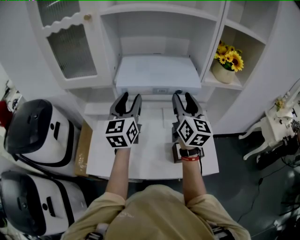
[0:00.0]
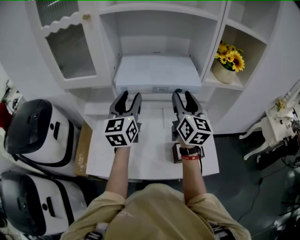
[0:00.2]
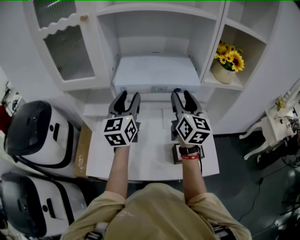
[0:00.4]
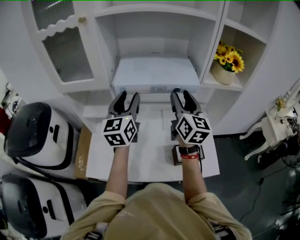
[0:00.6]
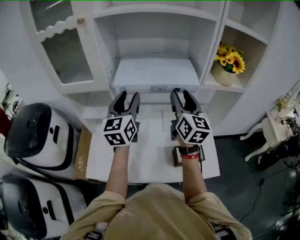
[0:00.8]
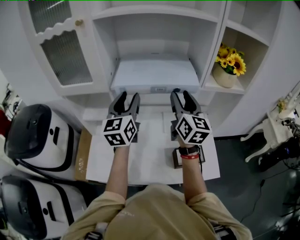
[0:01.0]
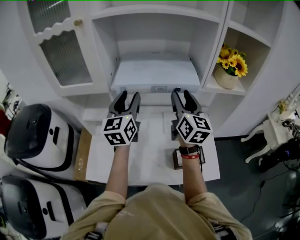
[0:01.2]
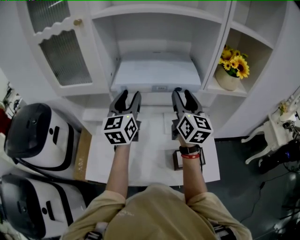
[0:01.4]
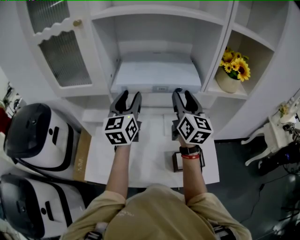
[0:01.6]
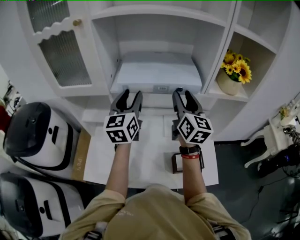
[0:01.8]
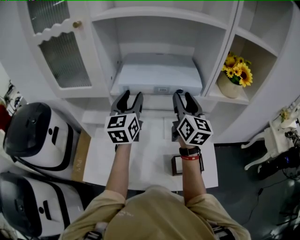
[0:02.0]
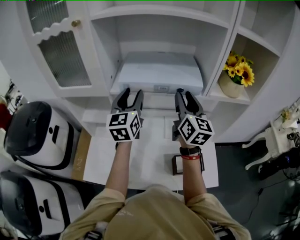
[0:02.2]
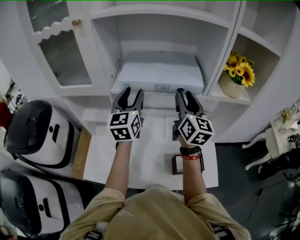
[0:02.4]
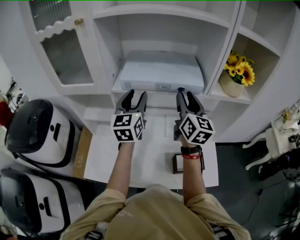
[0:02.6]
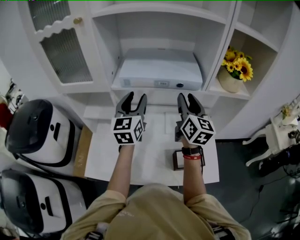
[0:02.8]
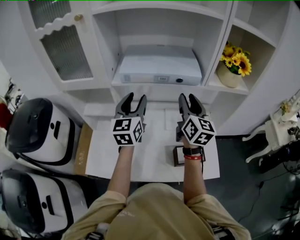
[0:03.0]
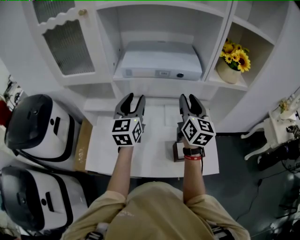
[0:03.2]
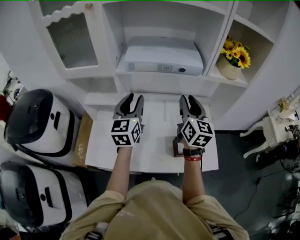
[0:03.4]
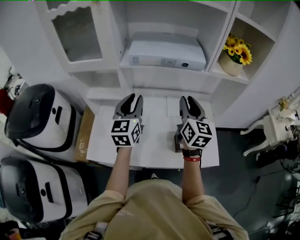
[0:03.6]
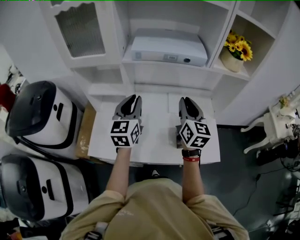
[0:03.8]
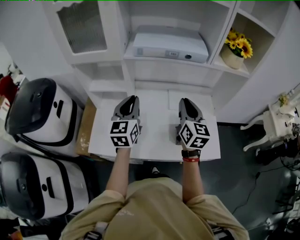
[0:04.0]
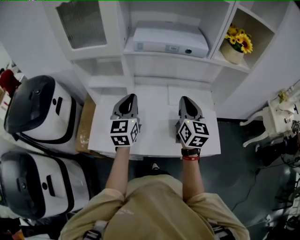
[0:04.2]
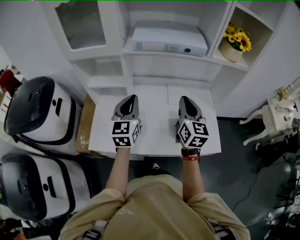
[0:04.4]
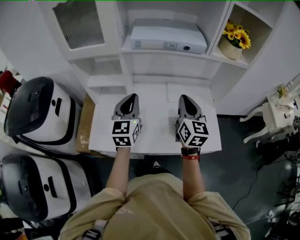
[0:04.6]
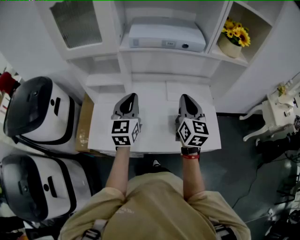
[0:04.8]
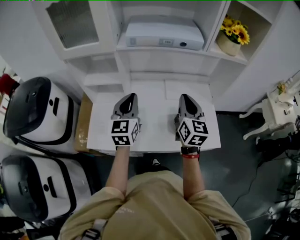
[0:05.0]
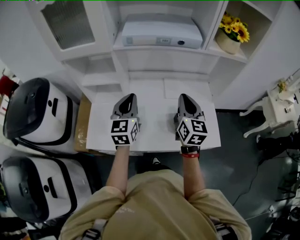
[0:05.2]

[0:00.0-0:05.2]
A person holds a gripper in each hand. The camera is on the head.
0:00.0 to 0:01.8: The grippers both shift forward by roughly 10 cm.
0:01.8 to 0:03.4: Both grippers travel together backward and downward, approximately 10 cm.
0:03.4 to 0:05.2: Both grippers move backward and downward, roughly 10 cm.

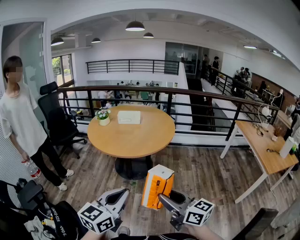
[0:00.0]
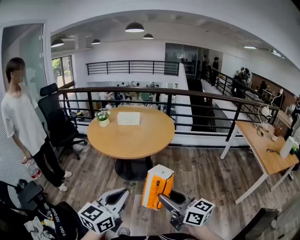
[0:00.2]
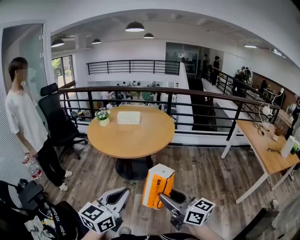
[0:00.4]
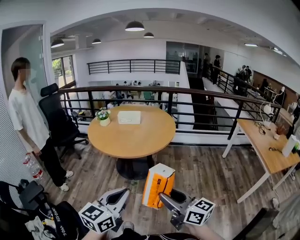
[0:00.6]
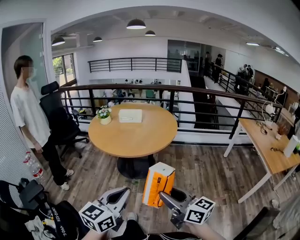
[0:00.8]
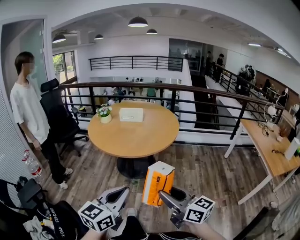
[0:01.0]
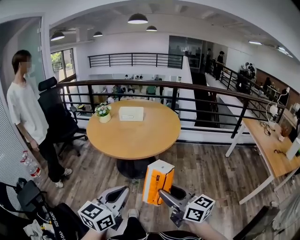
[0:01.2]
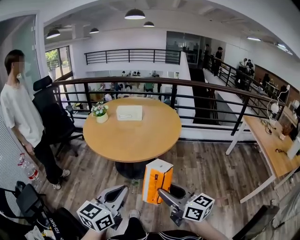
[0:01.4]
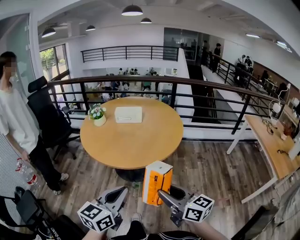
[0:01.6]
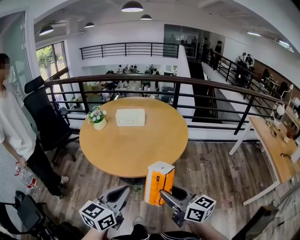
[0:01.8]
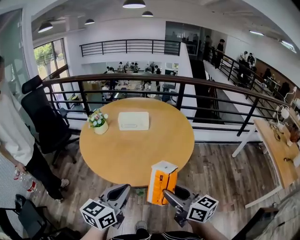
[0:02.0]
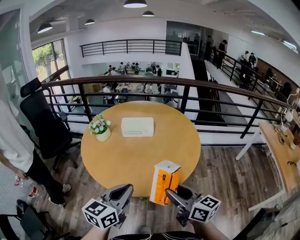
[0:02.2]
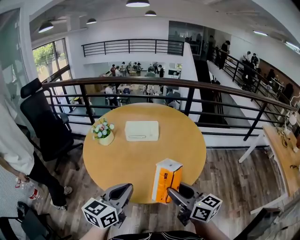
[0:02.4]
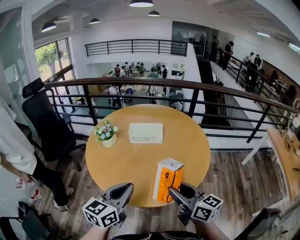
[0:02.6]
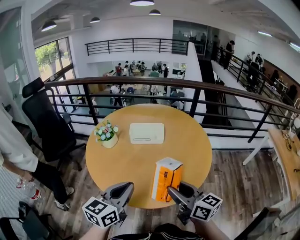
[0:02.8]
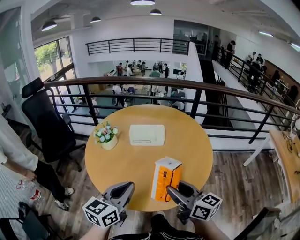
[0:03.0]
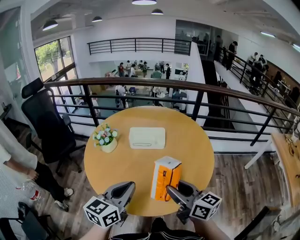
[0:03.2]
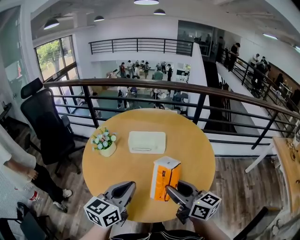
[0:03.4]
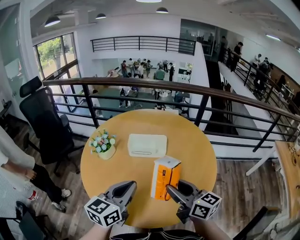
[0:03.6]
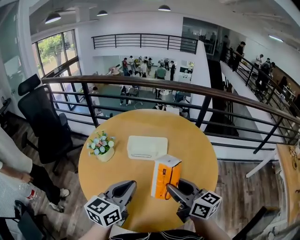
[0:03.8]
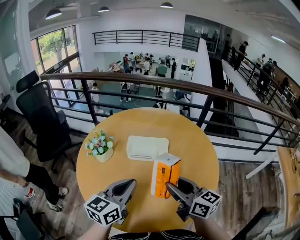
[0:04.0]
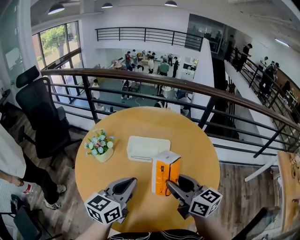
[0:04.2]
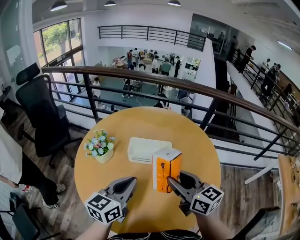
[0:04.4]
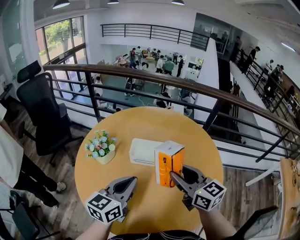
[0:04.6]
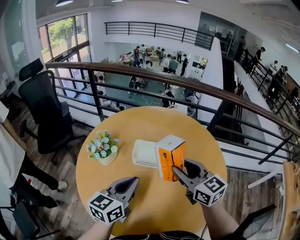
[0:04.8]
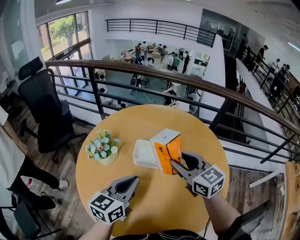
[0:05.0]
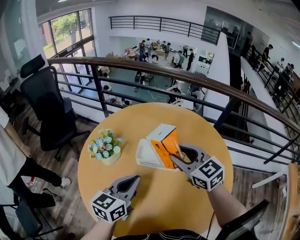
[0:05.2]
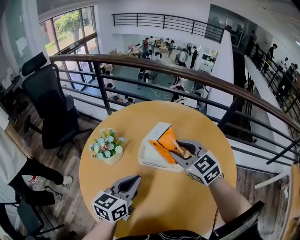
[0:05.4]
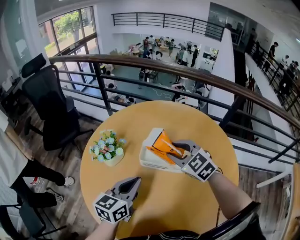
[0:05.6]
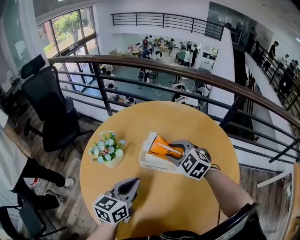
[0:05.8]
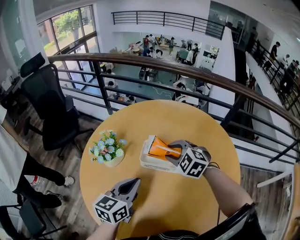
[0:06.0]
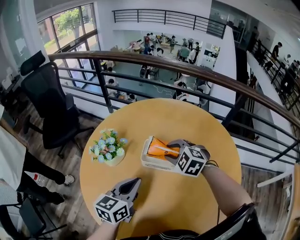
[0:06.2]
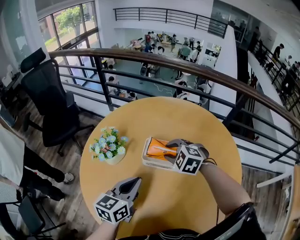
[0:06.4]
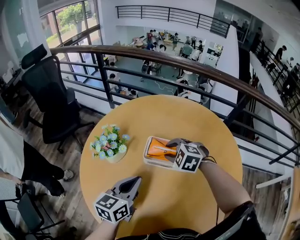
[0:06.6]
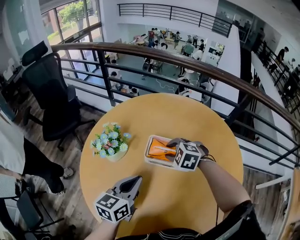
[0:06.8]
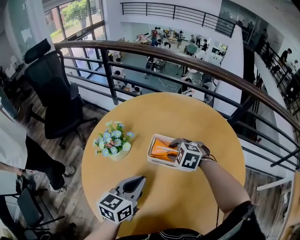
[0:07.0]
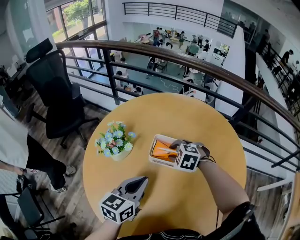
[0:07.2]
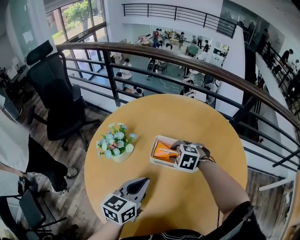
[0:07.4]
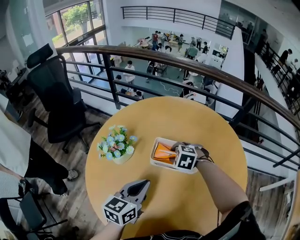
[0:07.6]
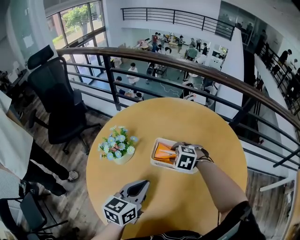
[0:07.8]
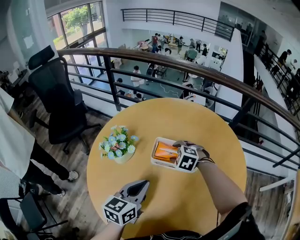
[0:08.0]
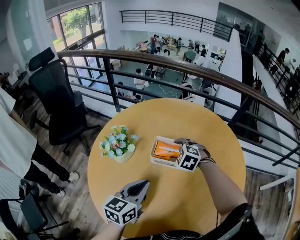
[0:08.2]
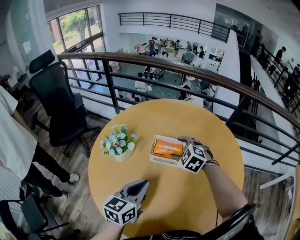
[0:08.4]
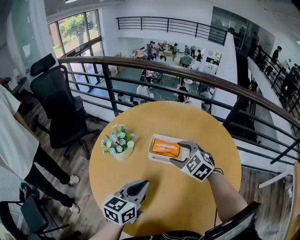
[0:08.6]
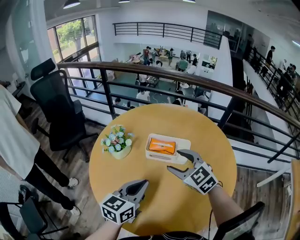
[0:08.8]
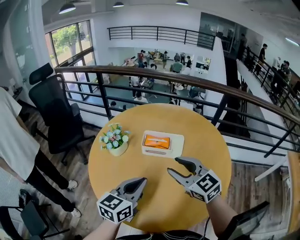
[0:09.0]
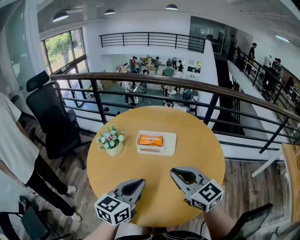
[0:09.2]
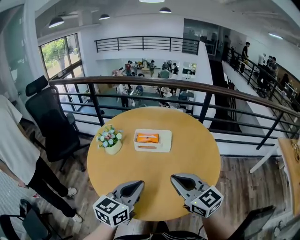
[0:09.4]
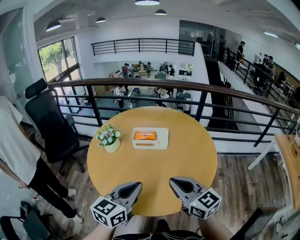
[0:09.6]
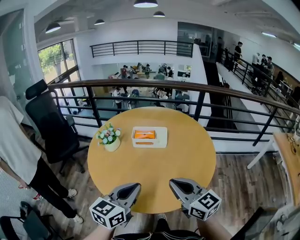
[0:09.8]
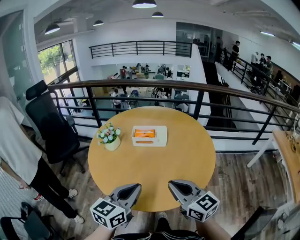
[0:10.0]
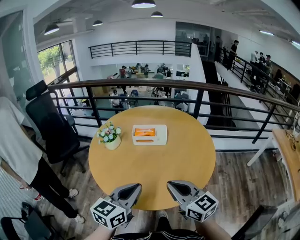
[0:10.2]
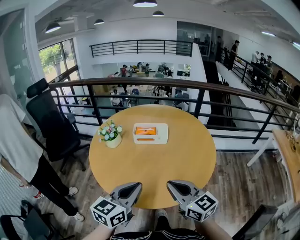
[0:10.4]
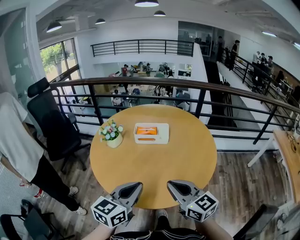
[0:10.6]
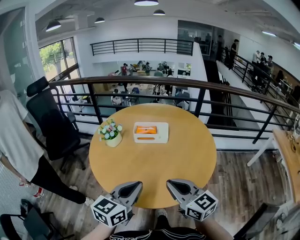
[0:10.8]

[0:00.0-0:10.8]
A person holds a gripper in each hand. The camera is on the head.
0:00.0 to 0:01.6: Both grippers travel together forward, some 15 cm.
0:01.6 to 0:03.0: Both grippers travel together forward, some 25 cm.
0:03.0 to 0:04.6: The grippers both shift forward by approximately 20 cm.
0:04.6 to 0:06.2: The right gripper moves forward and downward, about 20 cm, and tips its fingers downward by about 40 degrees. The left gripper goes about 10 cm downward and forward.
0:06.2 to 0:07.8: The right gripper moves downward, approximately 10 cm.
0:07.8 to 0:09.2: The right gripper goes some 35 cm backward and upward, points its fingers approximately 60 degrees further upward, and closes its fingers. The left gripper shifts roughly 15 cm backward and upward.
0:09.2 to 0:10.8: The grippers both shift backward by roughly 15 cm.

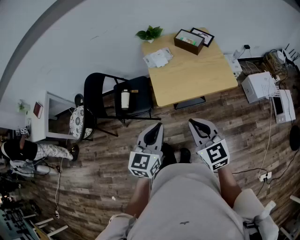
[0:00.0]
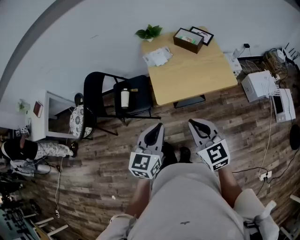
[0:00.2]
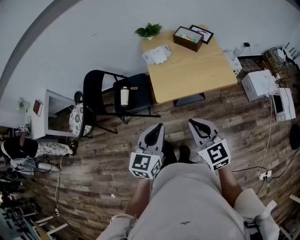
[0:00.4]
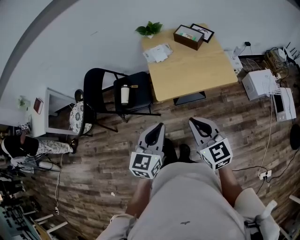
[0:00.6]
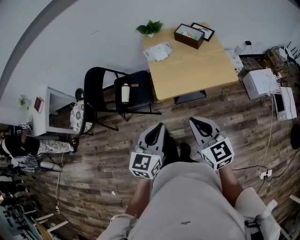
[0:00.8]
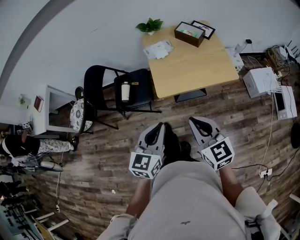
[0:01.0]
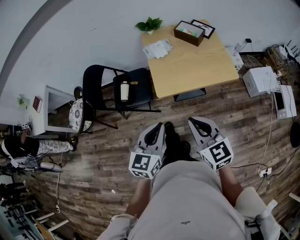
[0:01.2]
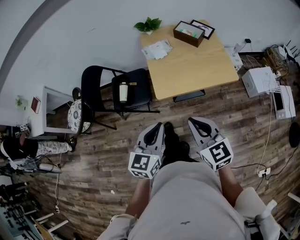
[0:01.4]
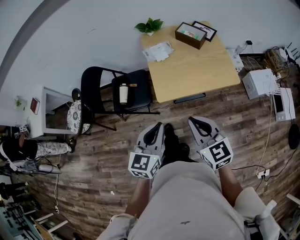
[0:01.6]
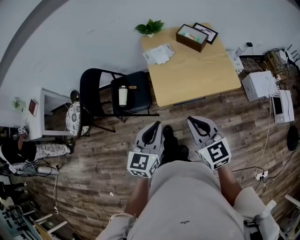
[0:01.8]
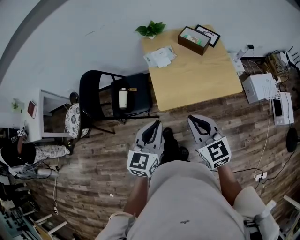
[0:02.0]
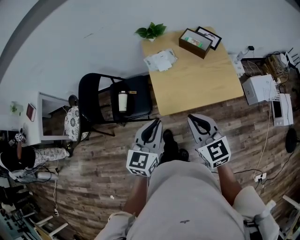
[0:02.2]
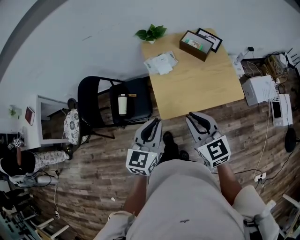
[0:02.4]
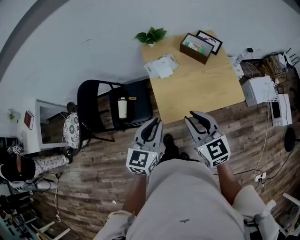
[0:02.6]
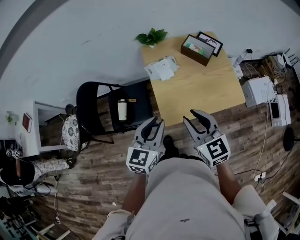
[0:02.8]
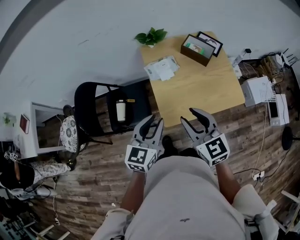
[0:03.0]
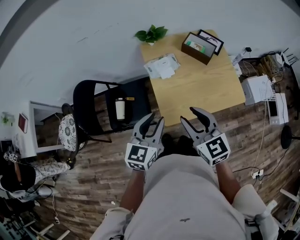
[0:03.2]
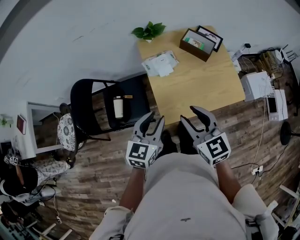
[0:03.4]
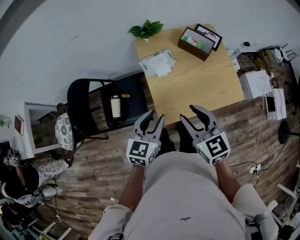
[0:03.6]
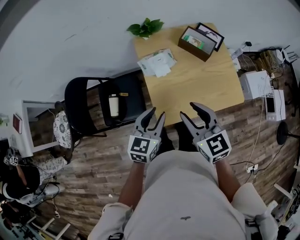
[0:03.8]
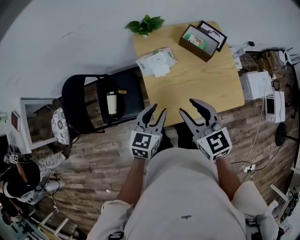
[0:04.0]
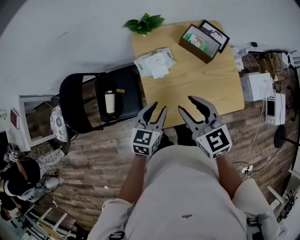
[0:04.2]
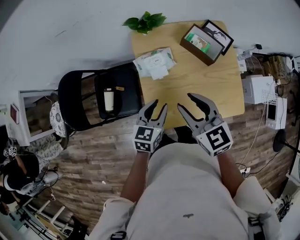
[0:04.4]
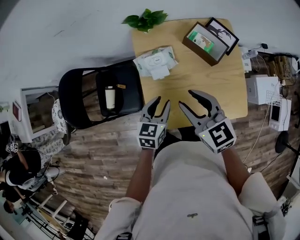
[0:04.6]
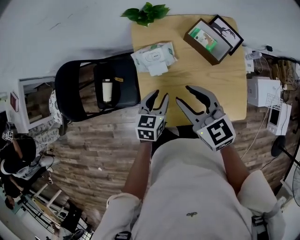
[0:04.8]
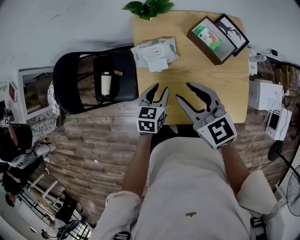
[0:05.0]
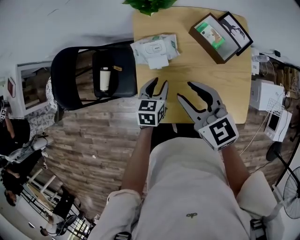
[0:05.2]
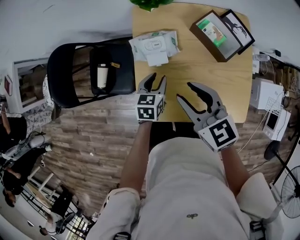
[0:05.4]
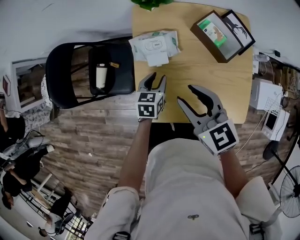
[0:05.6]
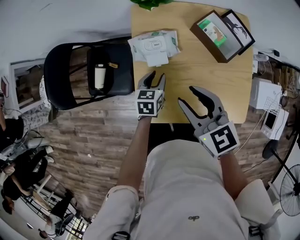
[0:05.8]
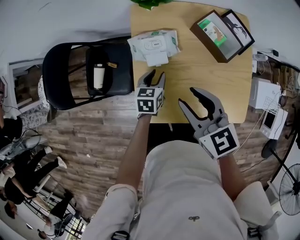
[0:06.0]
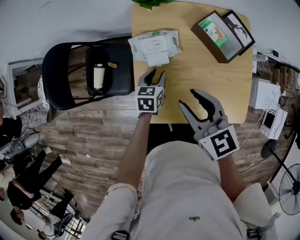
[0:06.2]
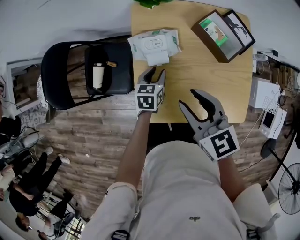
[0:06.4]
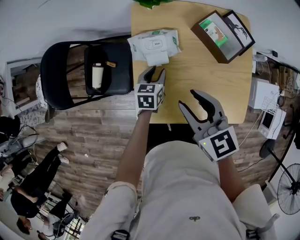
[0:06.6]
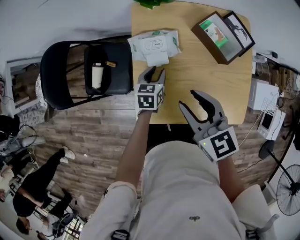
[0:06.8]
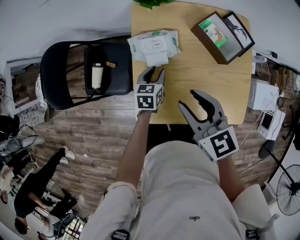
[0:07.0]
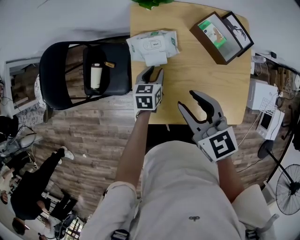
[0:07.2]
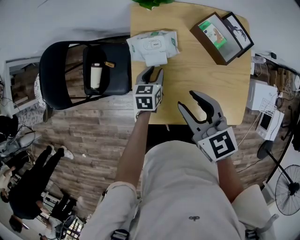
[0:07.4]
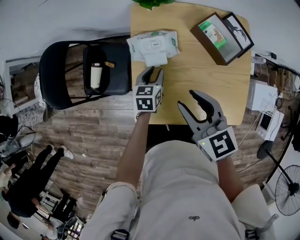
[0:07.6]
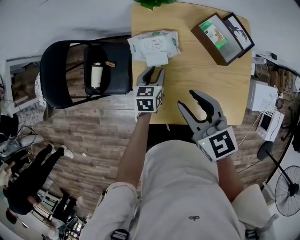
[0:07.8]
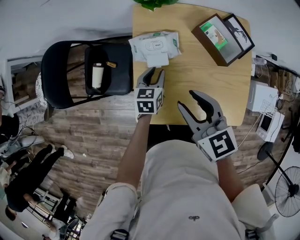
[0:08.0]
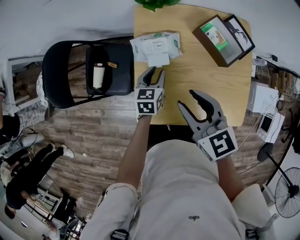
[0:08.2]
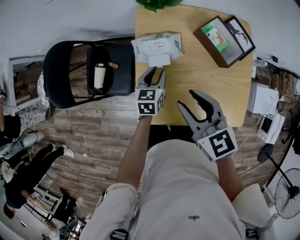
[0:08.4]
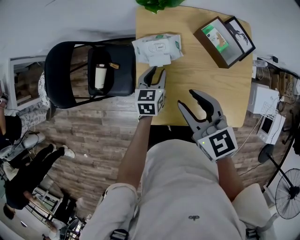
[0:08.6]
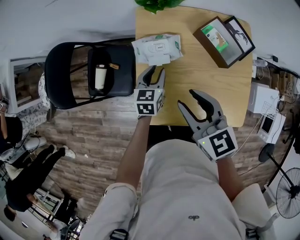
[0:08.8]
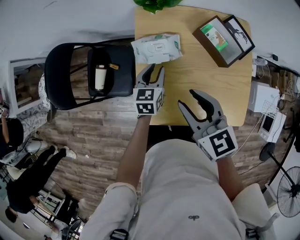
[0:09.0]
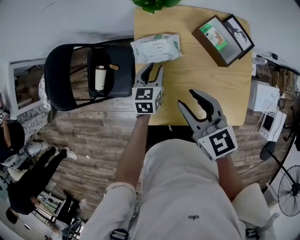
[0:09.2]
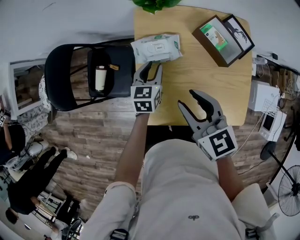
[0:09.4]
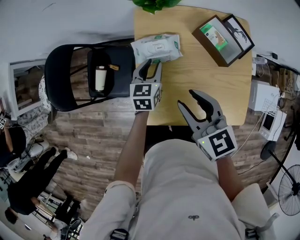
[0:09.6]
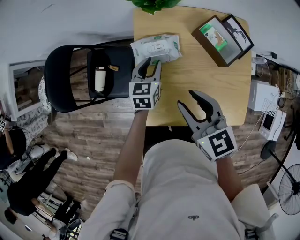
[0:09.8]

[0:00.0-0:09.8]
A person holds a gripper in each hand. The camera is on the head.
0:00.0 to 0:01.4: The grippers stay close to where they were, moving slightly.
0:01.4 to 0:02.8: Both grippers travel together forward, about 20 cm. The right gripper opens up.
0:02.8 to 0:04.2: The left gripper heads forward and downward, covering some 15 cm, while the right gripper heads forward, covering roughly 15 cm.
0:04.2 to 0:05.6: The right gripper shifts roughly 10 cm downward and forward. The left gripper shifts about 20 cm downward and forward, and turns by roughly 20 degrees.
0:05.6 to 0:08.4: The grippers move only a little.
0:08.4 to 0:09.8: The left gripper ends up some 5 cm from where it was.
